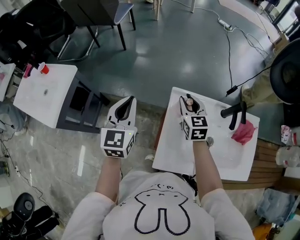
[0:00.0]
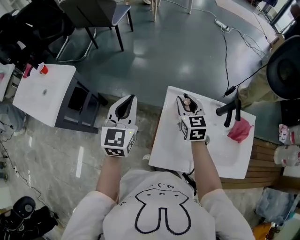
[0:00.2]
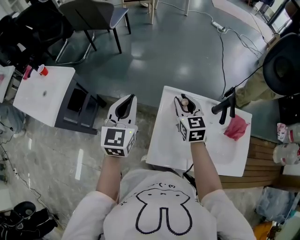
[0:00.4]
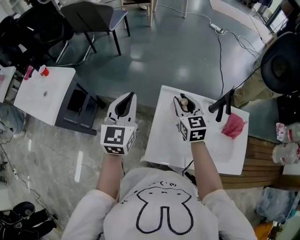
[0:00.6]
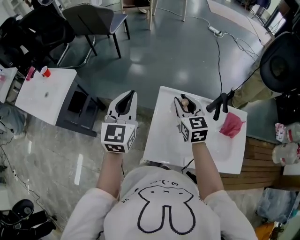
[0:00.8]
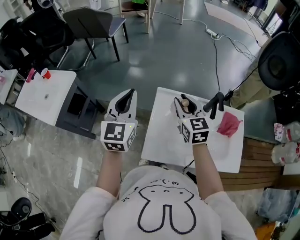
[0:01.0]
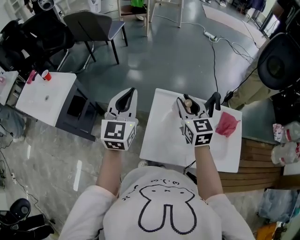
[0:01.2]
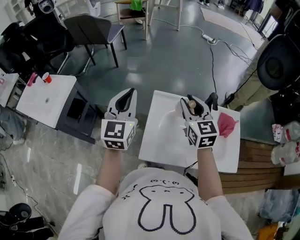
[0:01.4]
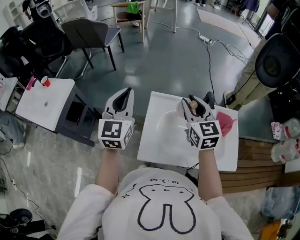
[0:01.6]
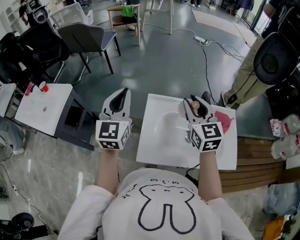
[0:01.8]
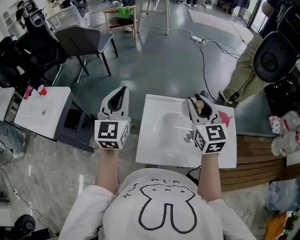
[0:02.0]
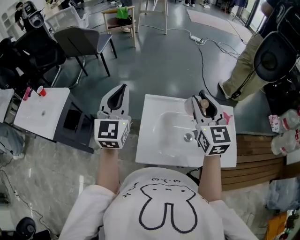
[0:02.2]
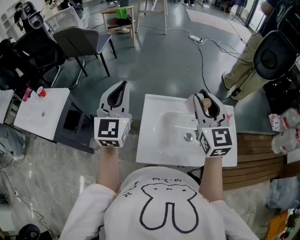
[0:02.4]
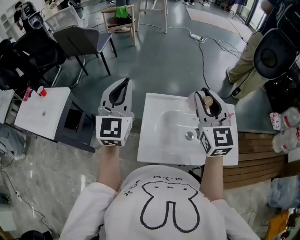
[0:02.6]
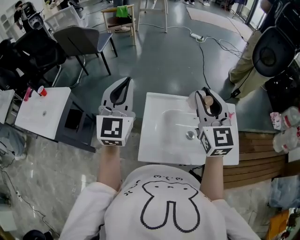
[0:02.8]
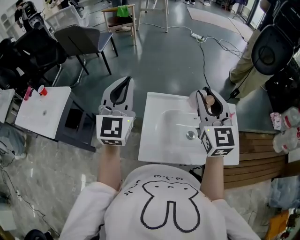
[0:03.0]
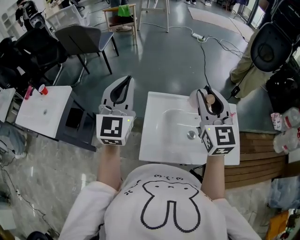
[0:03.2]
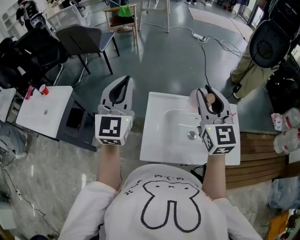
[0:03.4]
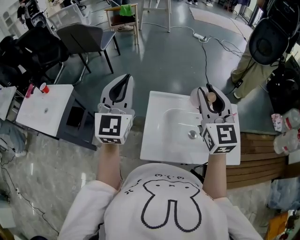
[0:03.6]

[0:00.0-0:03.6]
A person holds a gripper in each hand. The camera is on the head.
0:00.0 to 0:01.8: The left gripper travels upward, to the right and backward by approximately 15 cm. Meanwhile the right gripper heads upward, backward and to the right, covering approximately 25 cm.
0:01.8 to 0:03.6: The grippers both shift upward by roughly 5 cm.

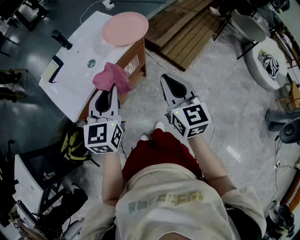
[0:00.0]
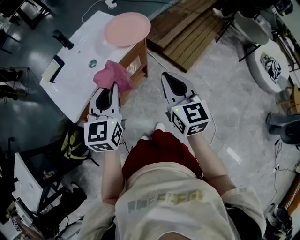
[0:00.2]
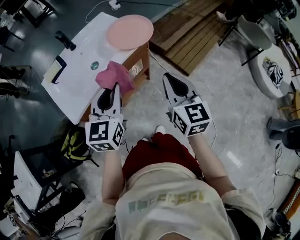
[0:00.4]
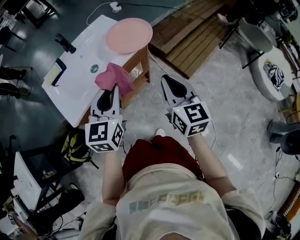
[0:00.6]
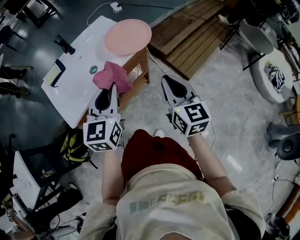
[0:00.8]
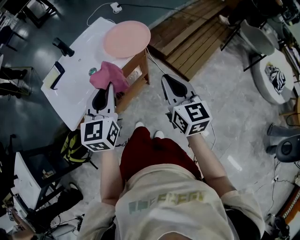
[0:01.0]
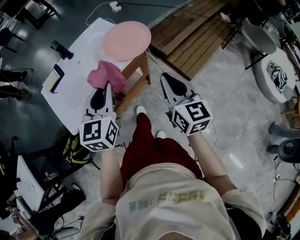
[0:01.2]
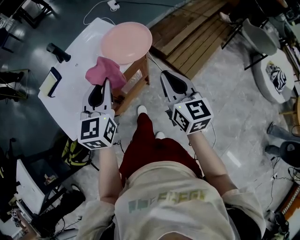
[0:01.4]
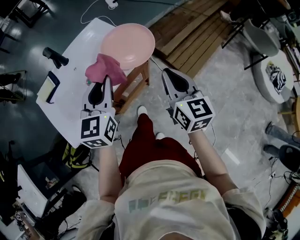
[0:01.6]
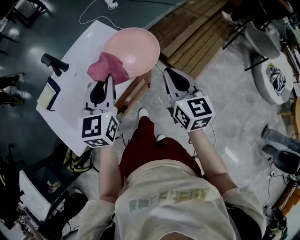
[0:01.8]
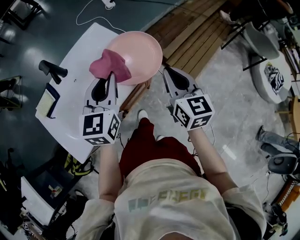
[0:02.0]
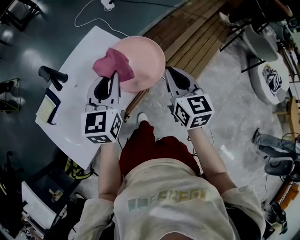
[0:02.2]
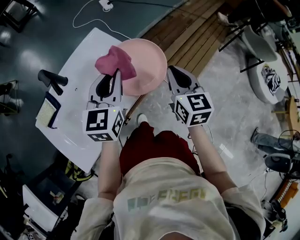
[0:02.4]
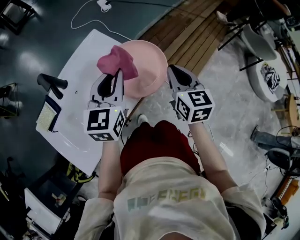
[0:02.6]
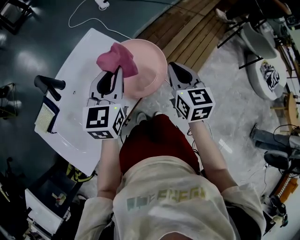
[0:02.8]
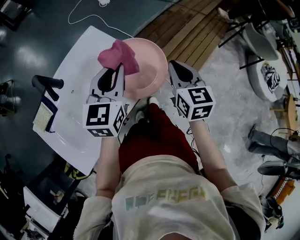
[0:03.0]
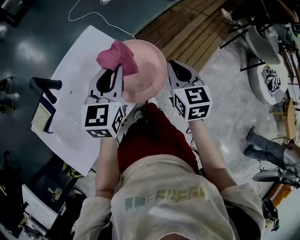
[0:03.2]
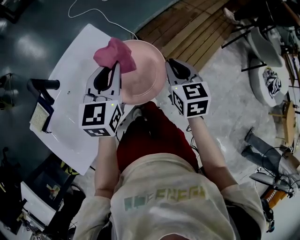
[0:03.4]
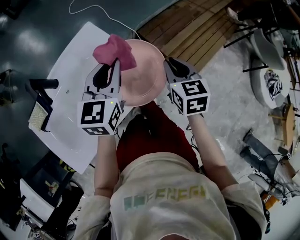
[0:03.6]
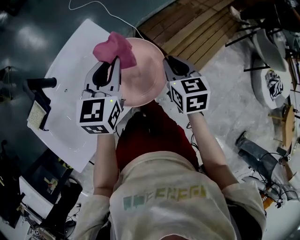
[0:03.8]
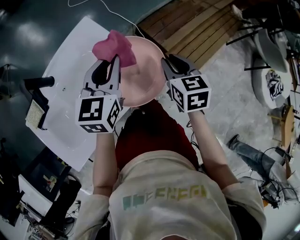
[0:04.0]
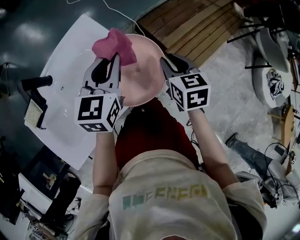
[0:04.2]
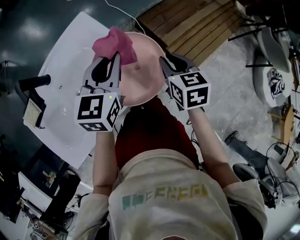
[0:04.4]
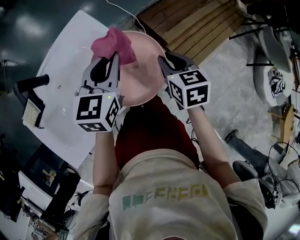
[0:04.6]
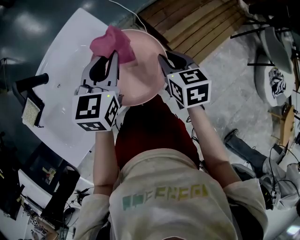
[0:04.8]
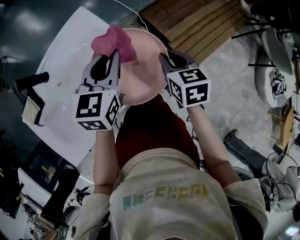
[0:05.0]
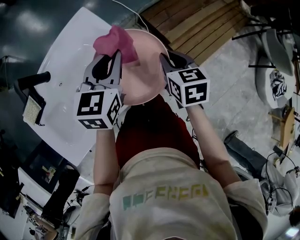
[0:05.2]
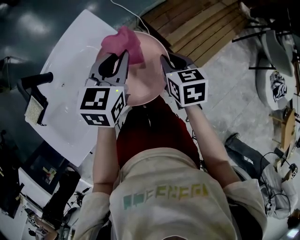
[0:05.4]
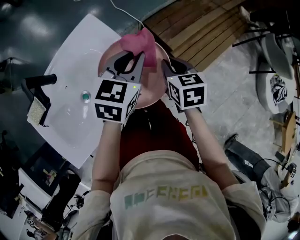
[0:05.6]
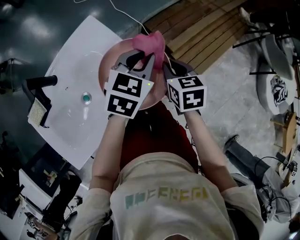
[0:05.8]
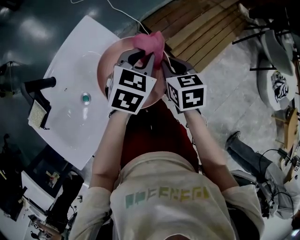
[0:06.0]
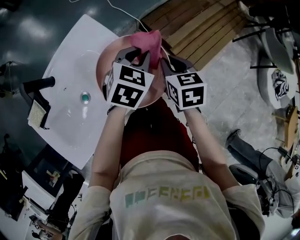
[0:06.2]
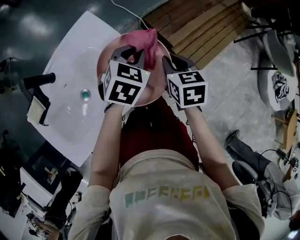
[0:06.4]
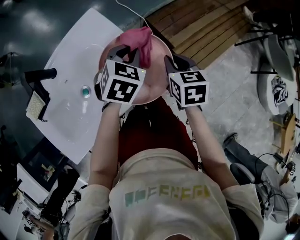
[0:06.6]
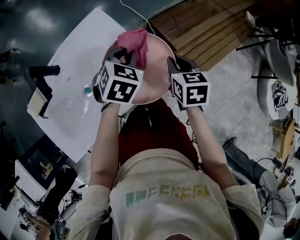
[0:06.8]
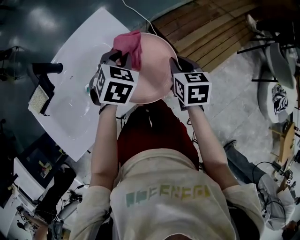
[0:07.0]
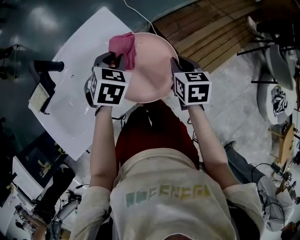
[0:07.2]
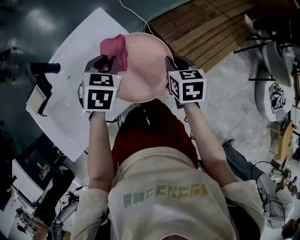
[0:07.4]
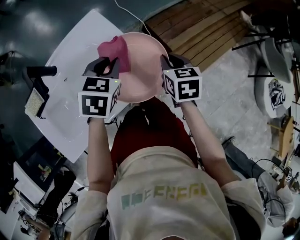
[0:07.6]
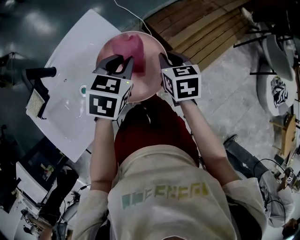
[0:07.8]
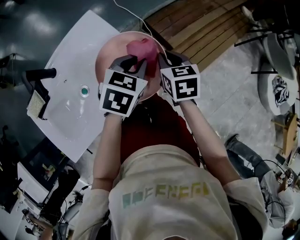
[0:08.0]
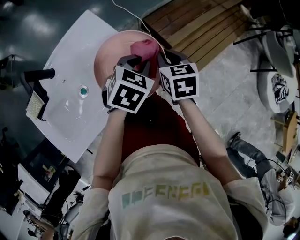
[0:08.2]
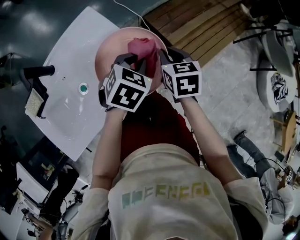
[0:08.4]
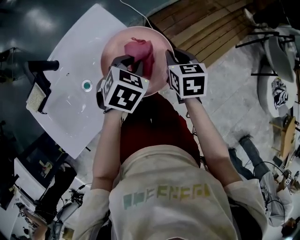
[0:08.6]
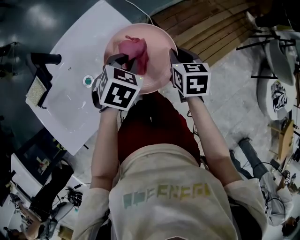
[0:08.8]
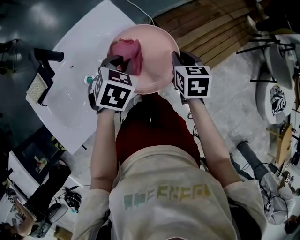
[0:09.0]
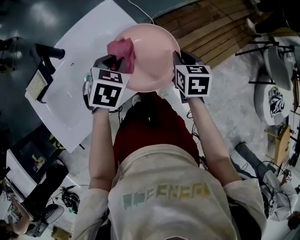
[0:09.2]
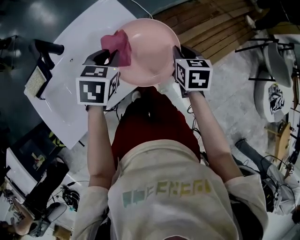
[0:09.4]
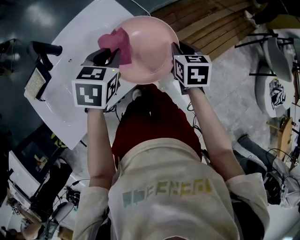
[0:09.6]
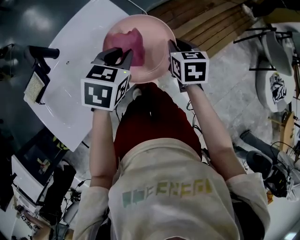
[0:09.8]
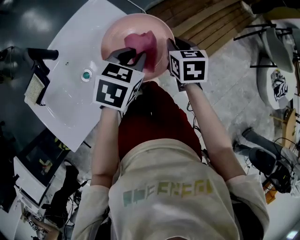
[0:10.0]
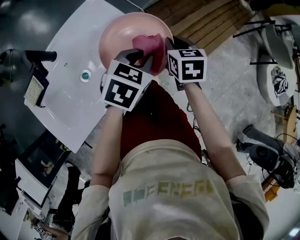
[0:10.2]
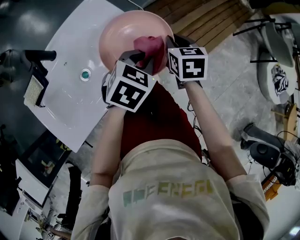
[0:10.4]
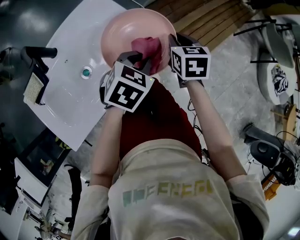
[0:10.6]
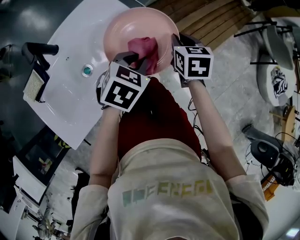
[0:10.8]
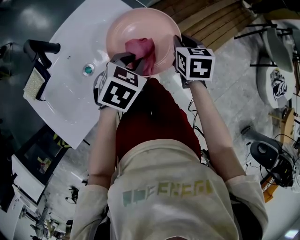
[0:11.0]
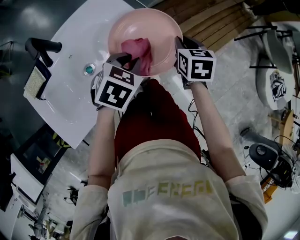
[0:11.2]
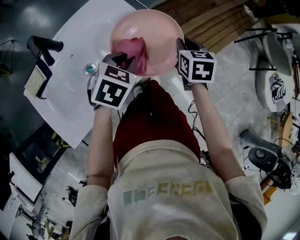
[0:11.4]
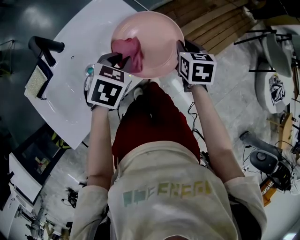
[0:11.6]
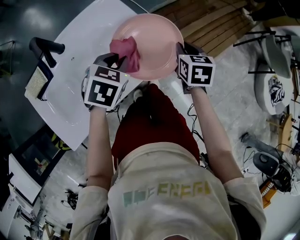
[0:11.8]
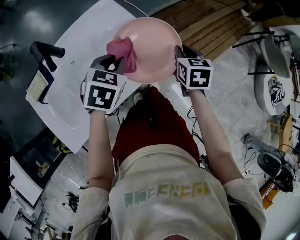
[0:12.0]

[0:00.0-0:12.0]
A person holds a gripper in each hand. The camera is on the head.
0:00.0 to 0:01.6: Both grippers move forward, some 20 cm.
0:01.6 to 0:03.0: The grippers both shift forward by about 20 cm.
0:03.0 to 0:04.4: The right gripper is displaced downward and forward by some 10 cm, and rotates some 20 degrees. The left gripper goes about 10 cm forward.
0:04.4 to 0:06.0: The left gripper moves to the right, approximately 10 cm, and turns by roughly 30 degrees.
0:06.0 to 0:07.6: The left gripper travels to the left by about 10 cm.
0:07.6 to 0:09.0: The left gripper moves about 10 cm to the right and comes back.
0:09.0 to 0:10.4: The left gripper goes roughly 10 cm to the right.
0:10.4 to 0:12.0: The left gripper moves to the left, roughly 15 cm.

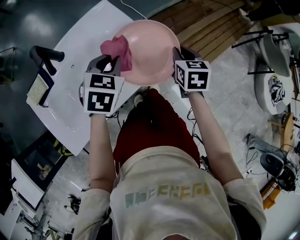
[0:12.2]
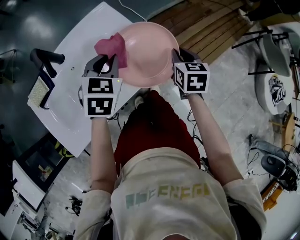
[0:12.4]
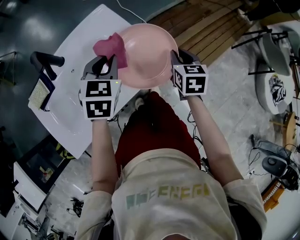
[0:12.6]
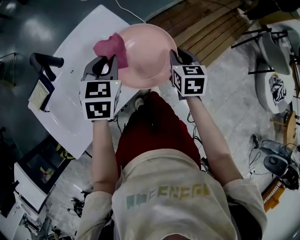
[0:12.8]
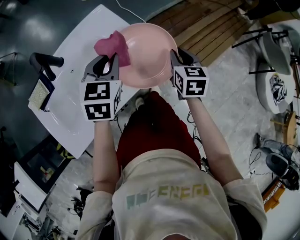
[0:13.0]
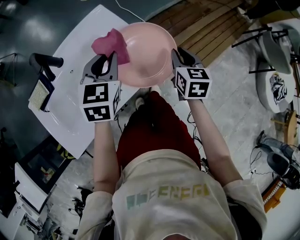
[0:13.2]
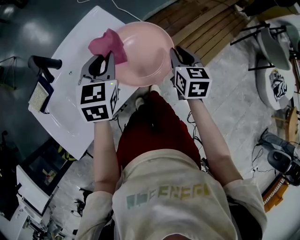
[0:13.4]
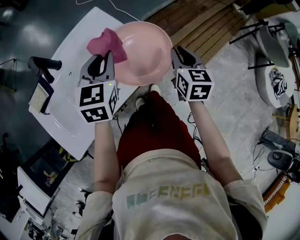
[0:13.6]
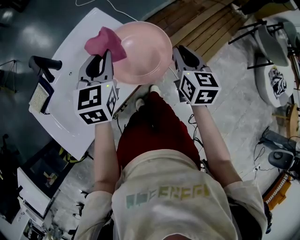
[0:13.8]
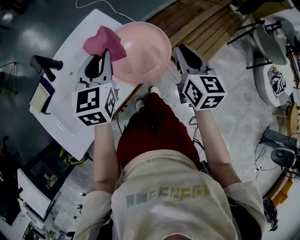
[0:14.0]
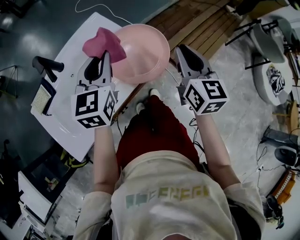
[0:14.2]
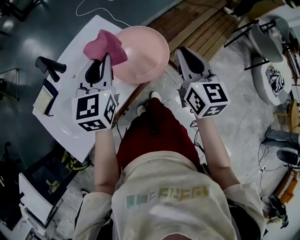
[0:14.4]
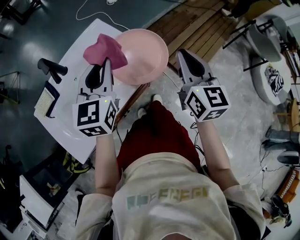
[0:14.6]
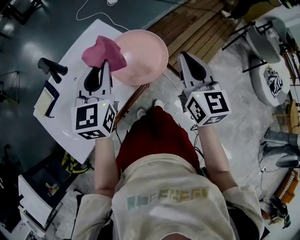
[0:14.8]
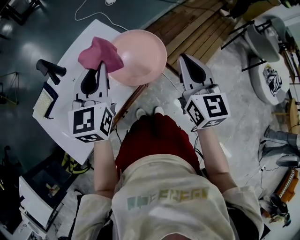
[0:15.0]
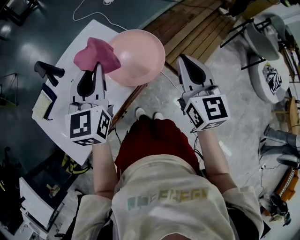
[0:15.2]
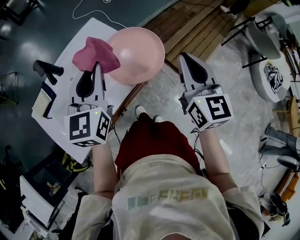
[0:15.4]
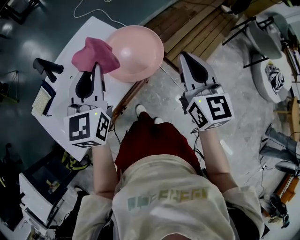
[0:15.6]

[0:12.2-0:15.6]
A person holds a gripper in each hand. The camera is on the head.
0:12.2 to 0:13.8: The grippers both shift upward by approximately 5 cm. The left gripper swivels about 30 degrees.
0:13.8 to 0:15.6: The right gripper moves upward and backward, some 15 cm. The left gripper goes some 10 cm backward and upward.

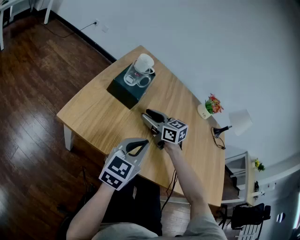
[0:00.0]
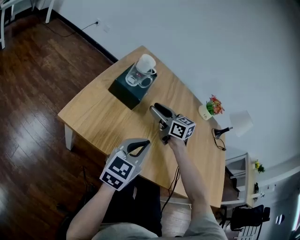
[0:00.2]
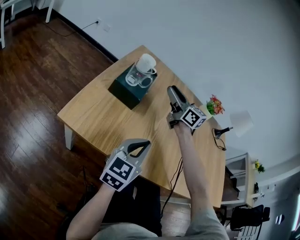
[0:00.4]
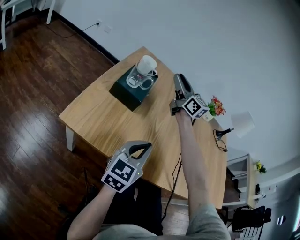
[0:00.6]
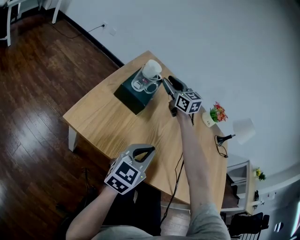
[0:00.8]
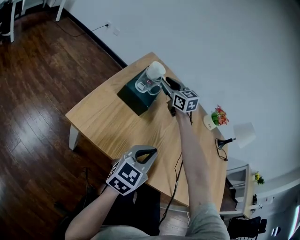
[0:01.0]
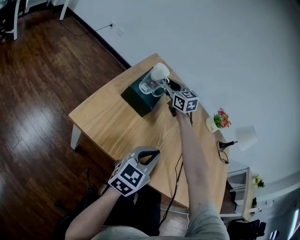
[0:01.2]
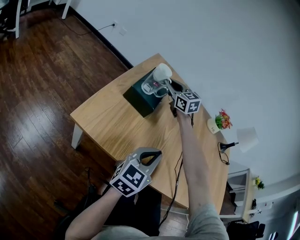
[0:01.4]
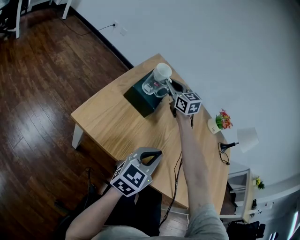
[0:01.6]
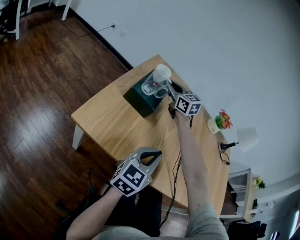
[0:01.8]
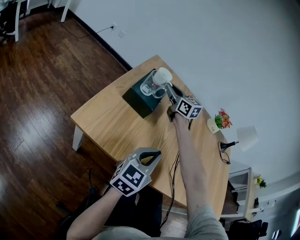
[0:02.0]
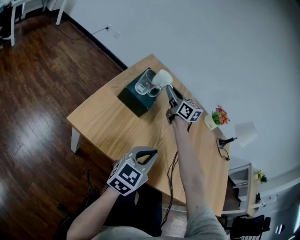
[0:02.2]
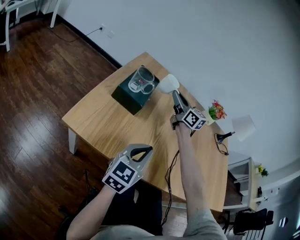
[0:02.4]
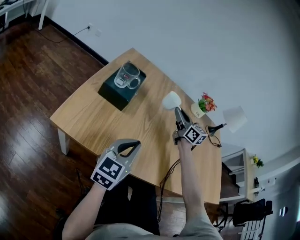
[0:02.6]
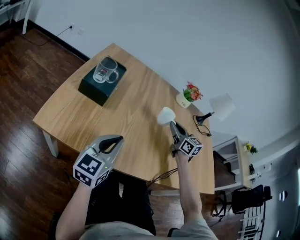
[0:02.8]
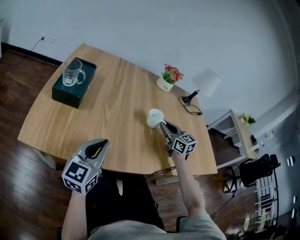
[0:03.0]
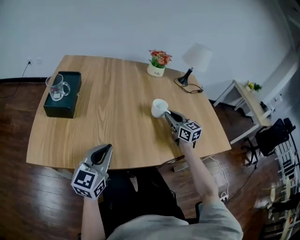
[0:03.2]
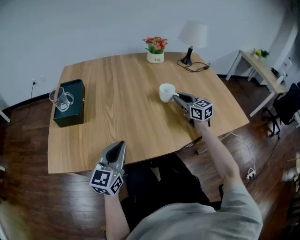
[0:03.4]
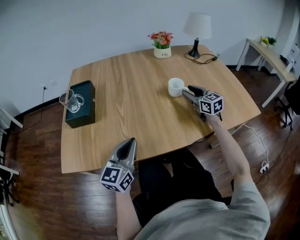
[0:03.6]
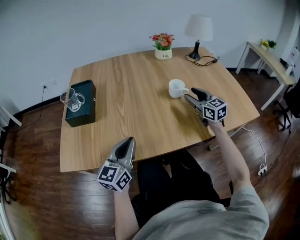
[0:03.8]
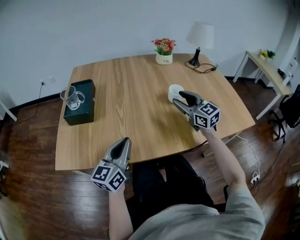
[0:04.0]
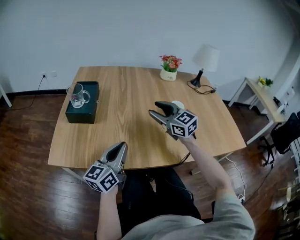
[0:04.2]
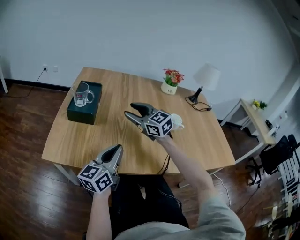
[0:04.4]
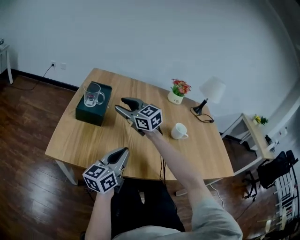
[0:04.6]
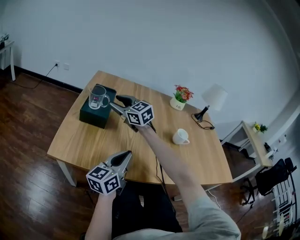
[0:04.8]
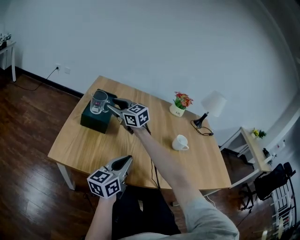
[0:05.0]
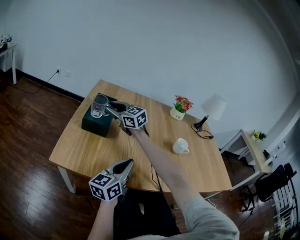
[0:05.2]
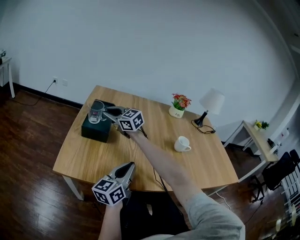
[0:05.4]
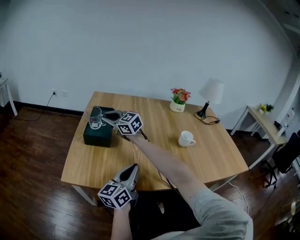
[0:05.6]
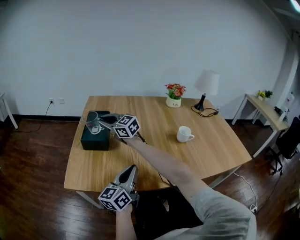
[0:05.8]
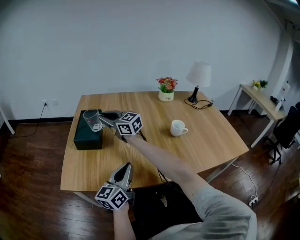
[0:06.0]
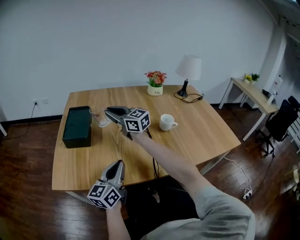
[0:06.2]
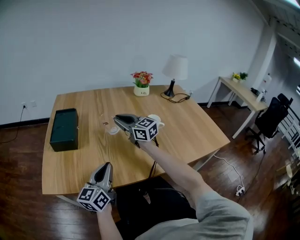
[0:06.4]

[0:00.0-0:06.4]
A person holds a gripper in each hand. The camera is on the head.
0:00.0 to 0:01.6: The right gripper goes approximately 20 cm forward and upward, turns by approximately 20 degrees, and closes up.
0:01.6 to 0:03.2: The left gripper is displaced to the right by approximately 5 cm. Meanwhile the right gripper heads to the right and backward, covering some 50 cm, and rotates about 40 degrees.
0:03.2 to 0:04.8: The right gripper moves to the left, approximately 50 cm, rotates roughly 40 degrees, and opens. Meanwhile the left gripper turns by some 20 degrees.
0:04.8 to 0:06.4: The right gripper heads to the right, covering approximately 20 cm, turns by about 30 degrees, and closes.
